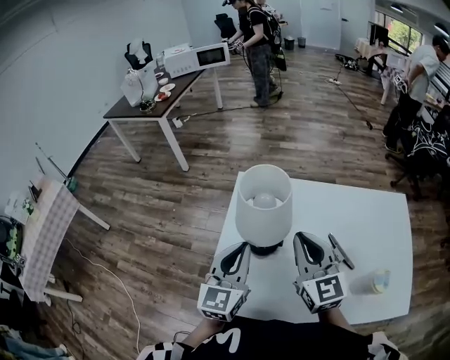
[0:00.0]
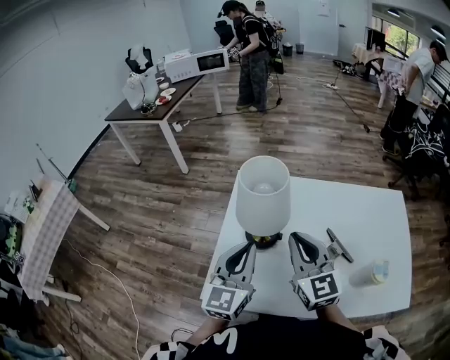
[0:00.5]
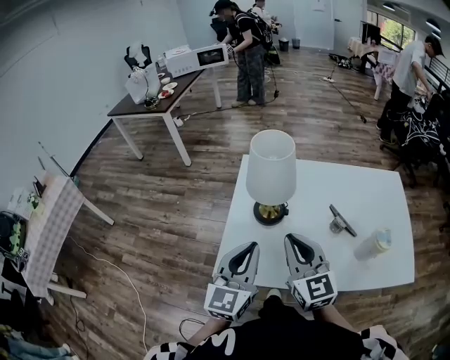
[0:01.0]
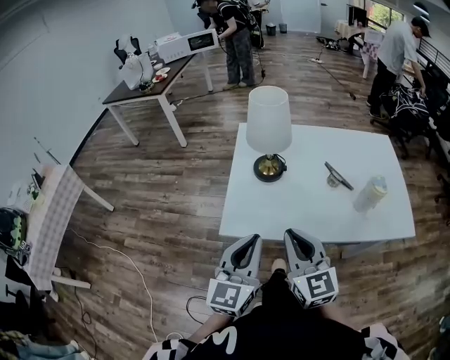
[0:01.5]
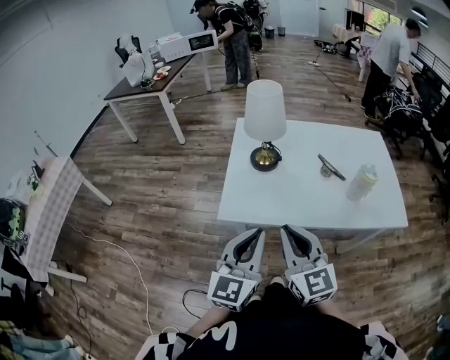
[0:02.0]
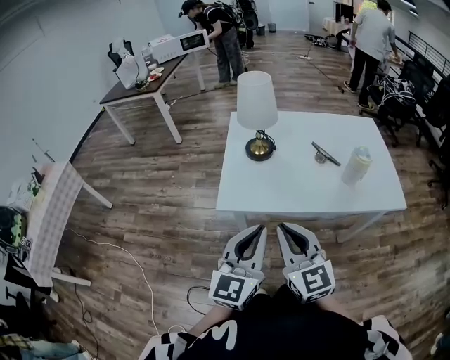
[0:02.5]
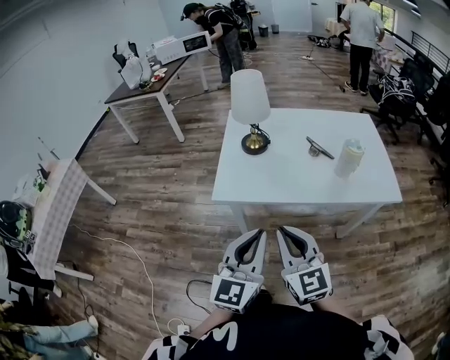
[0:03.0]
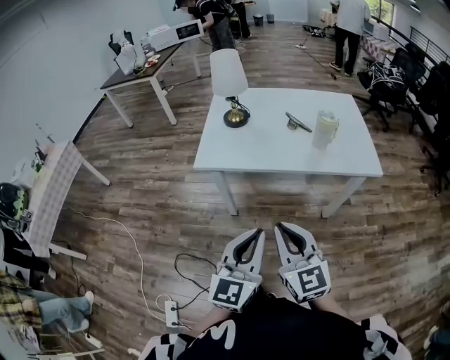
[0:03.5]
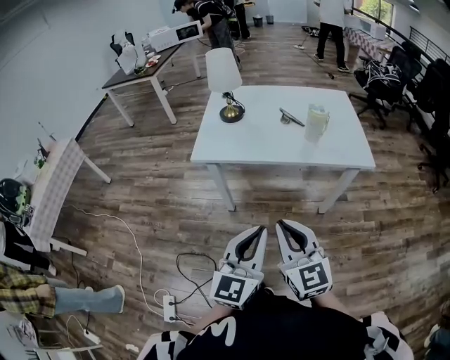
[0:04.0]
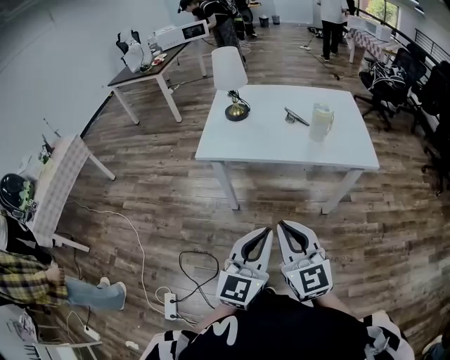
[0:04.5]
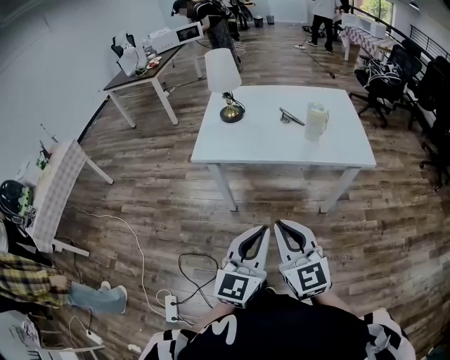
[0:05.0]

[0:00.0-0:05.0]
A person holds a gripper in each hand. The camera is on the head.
0:00.0 to 0:02.5: The two grippers go approximately 35 cm backward.
0:02.5 to 0:05.0: Both grippers travel together backward and to the right, approximately 25 cm.

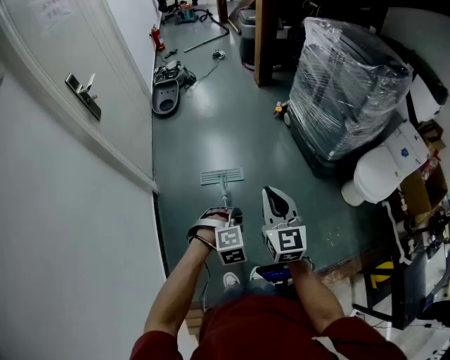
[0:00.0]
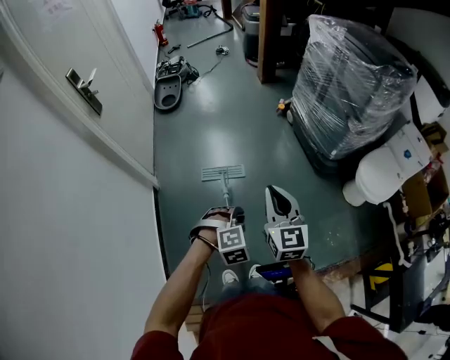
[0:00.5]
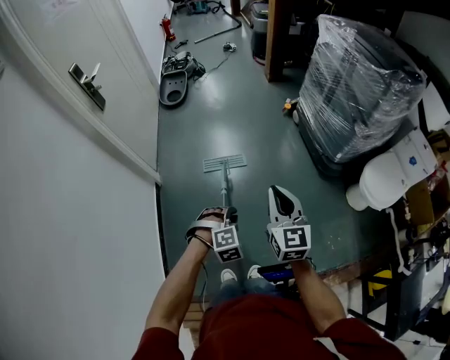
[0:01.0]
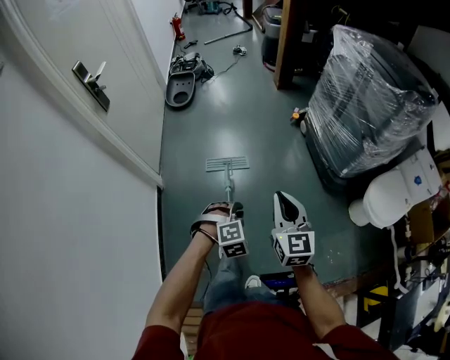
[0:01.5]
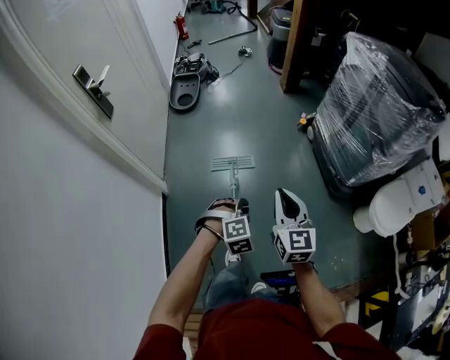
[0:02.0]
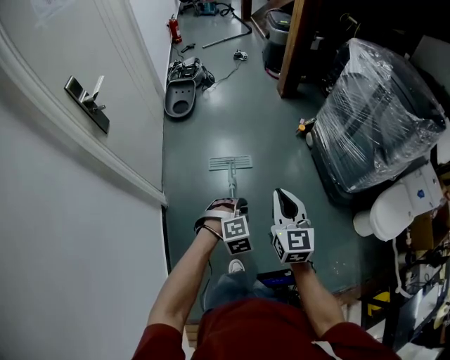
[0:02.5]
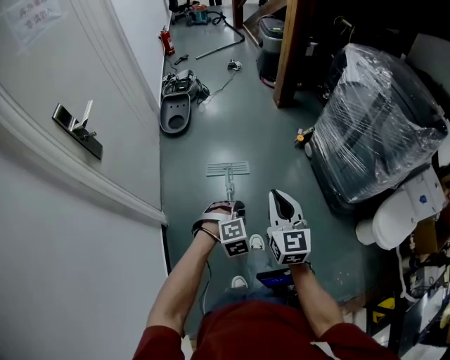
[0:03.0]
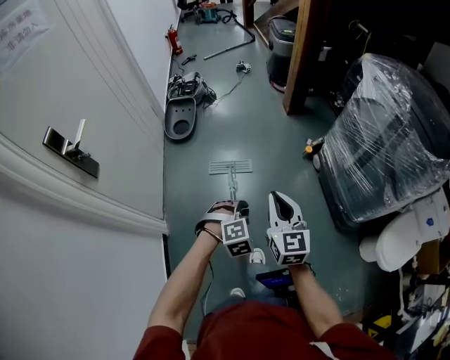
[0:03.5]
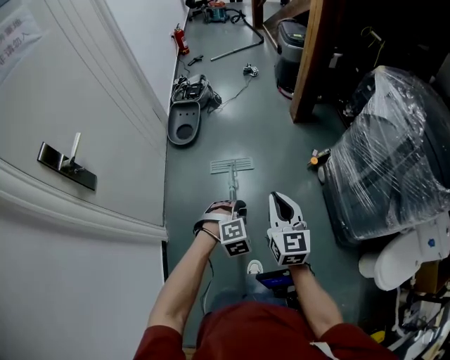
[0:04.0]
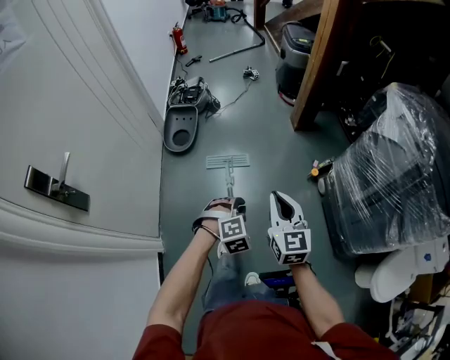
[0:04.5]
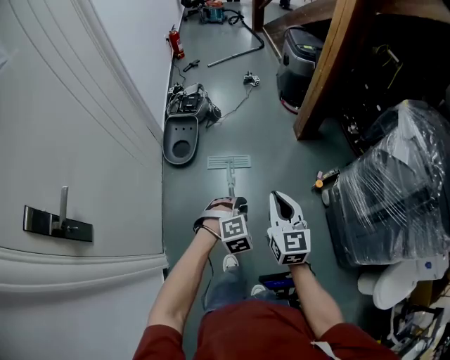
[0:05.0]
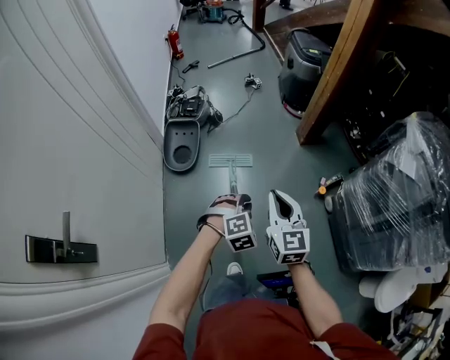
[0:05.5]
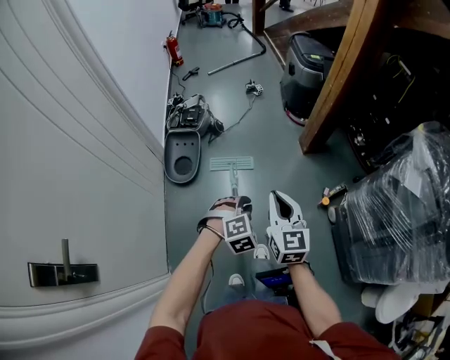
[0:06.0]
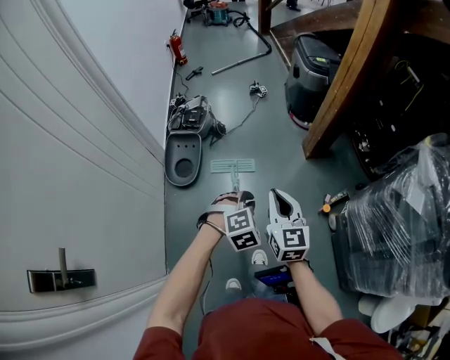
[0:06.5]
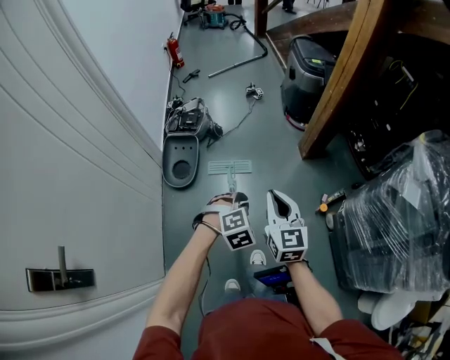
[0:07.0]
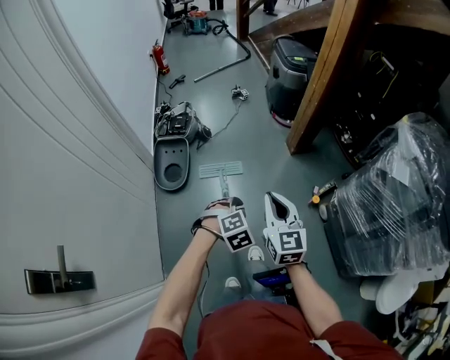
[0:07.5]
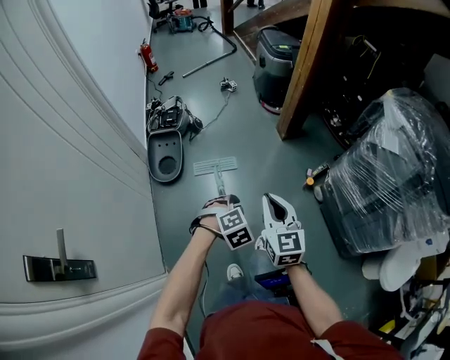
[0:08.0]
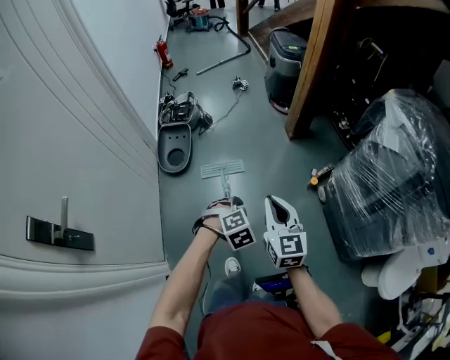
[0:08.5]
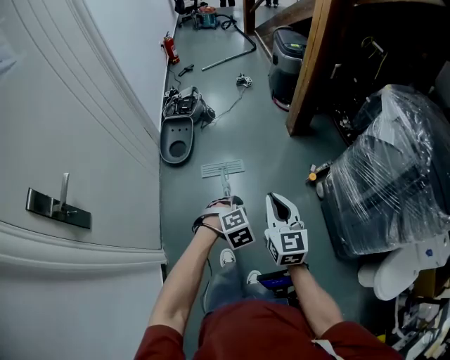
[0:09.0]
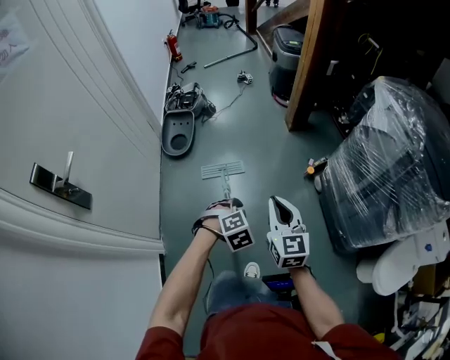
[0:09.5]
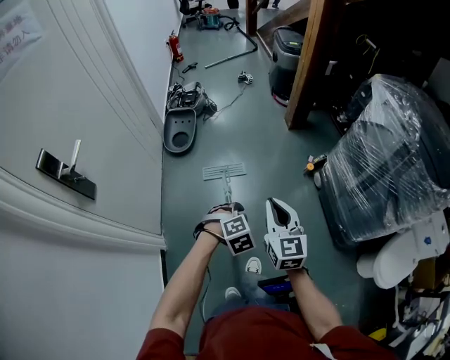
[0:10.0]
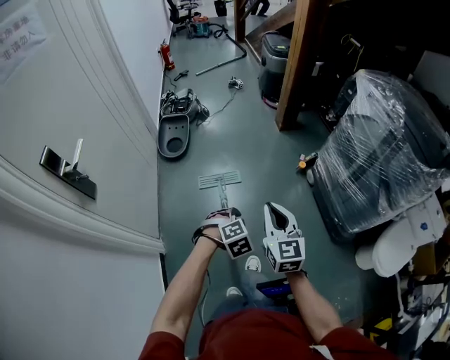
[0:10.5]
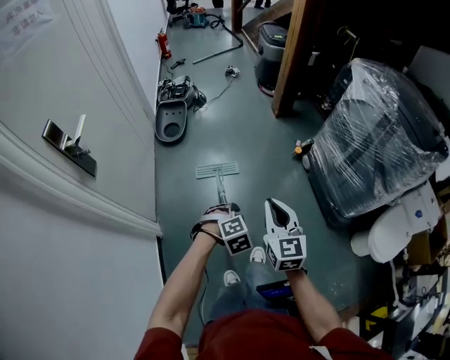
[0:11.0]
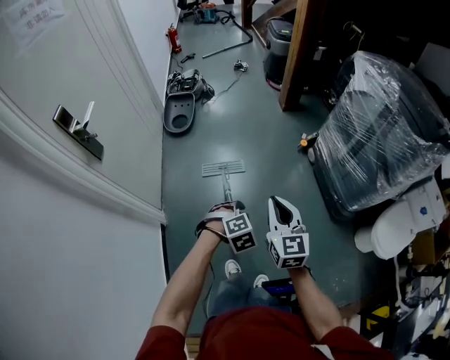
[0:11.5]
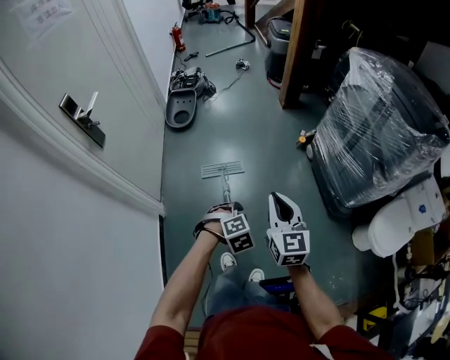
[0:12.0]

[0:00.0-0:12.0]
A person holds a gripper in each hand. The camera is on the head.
0:00.0 to 0:02.0: Both grippers travel together forward, approximately 20 cm.
0:02.0 to 0:04.0: The two grippers travel together, forward, approximately 40 cm.
0:04.0 to 0:06.0: The two grippers travel together, forward, roughly 40 cm.
0:06.0 to 0:08.0: The grippers both shift backward by approximately 10 cm.
0:08.0 to 0:10.0: Both grippers move backward, about 30 cm.
0:10.0 to 0:12.0: Both grippers move backward, approximately 30 cm.

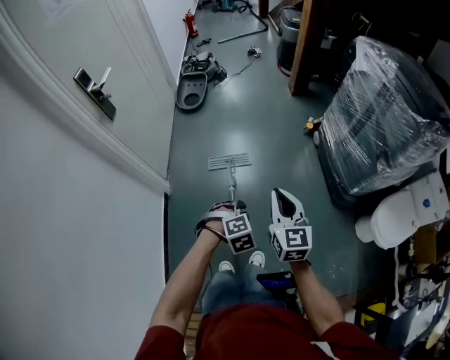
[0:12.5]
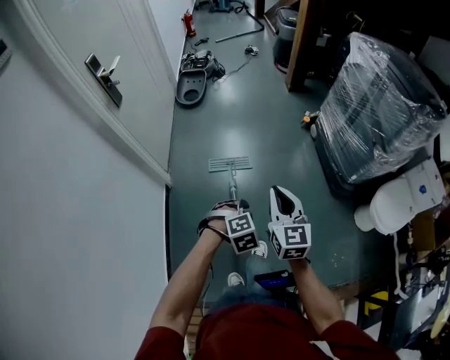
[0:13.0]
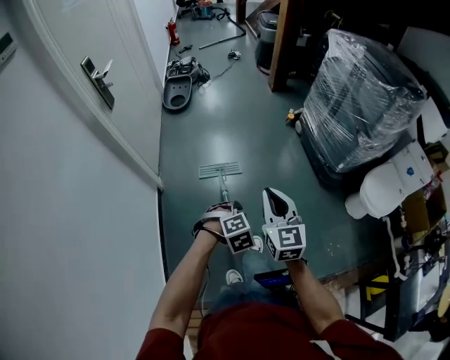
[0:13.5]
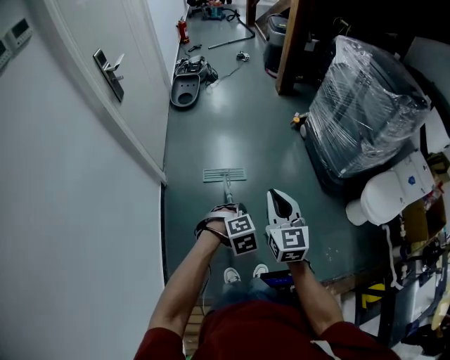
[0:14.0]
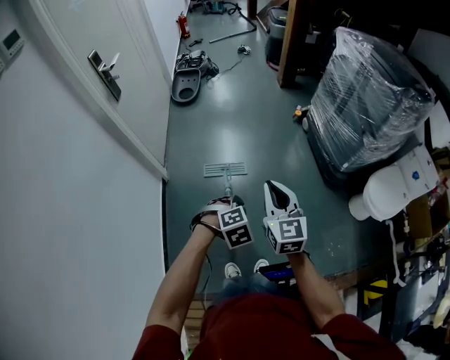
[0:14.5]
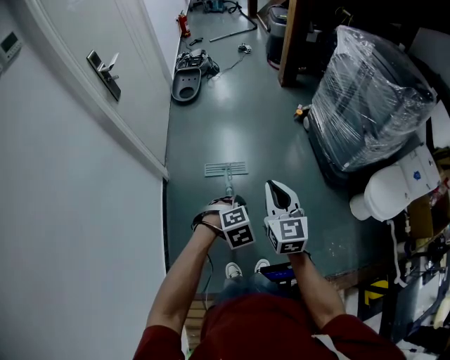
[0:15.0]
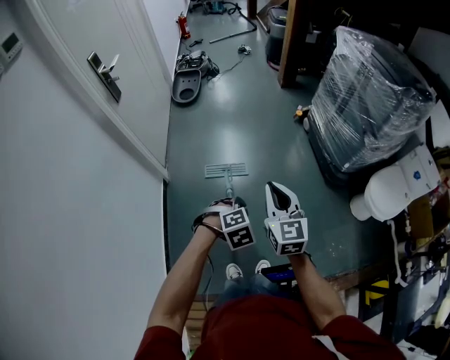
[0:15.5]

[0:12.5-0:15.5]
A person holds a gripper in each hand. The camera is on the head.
0:12.5 to 0:14.0: The two grippers go some 20 cm backward.
0:14.0 to 0:15.5: There are only small adjustments of the grippers.

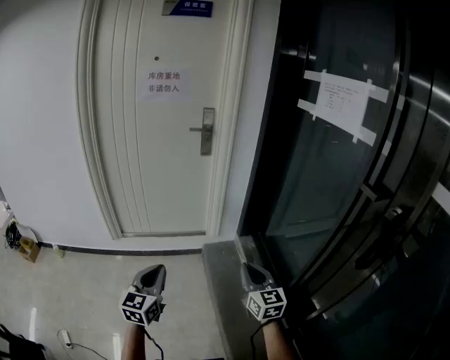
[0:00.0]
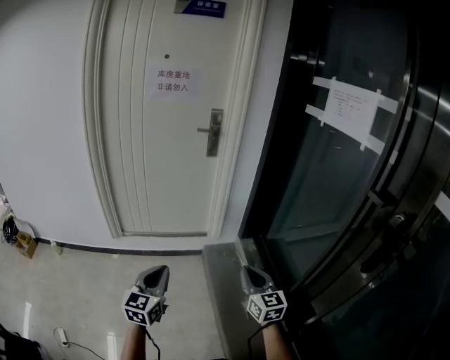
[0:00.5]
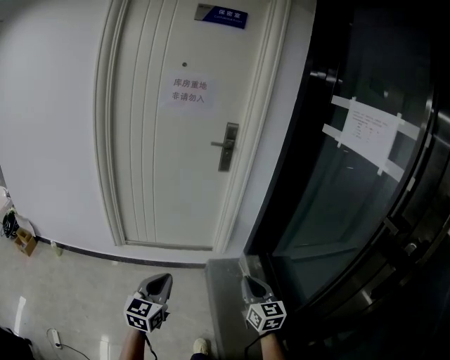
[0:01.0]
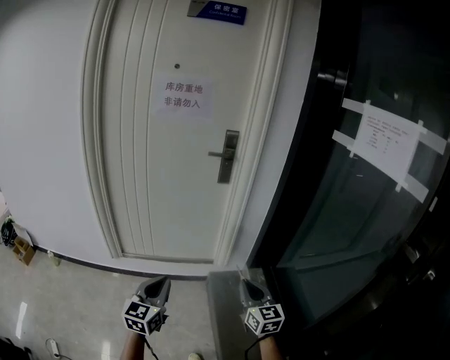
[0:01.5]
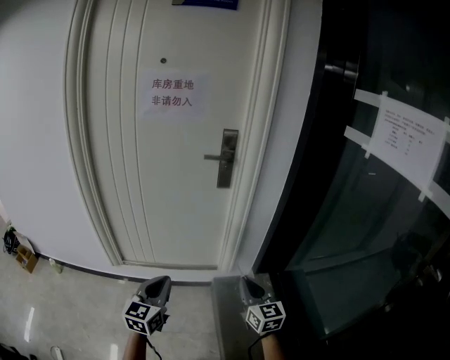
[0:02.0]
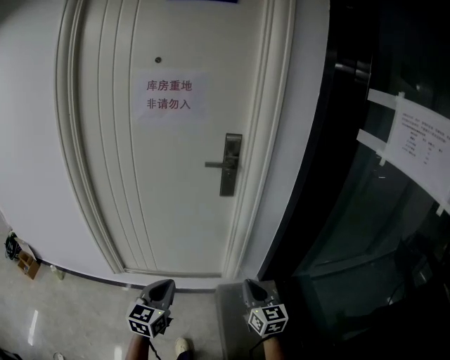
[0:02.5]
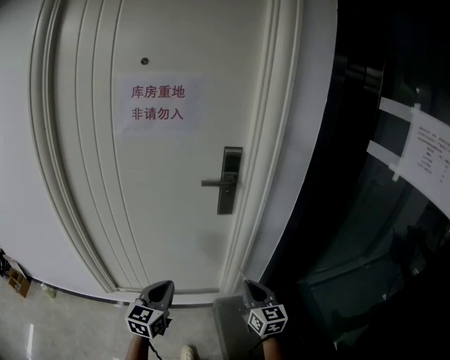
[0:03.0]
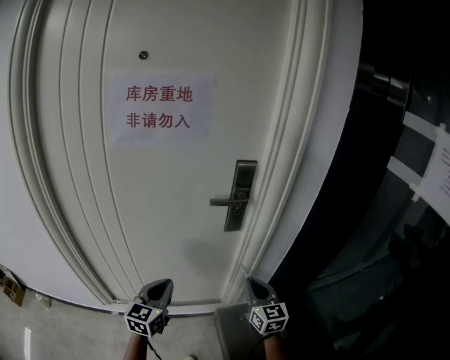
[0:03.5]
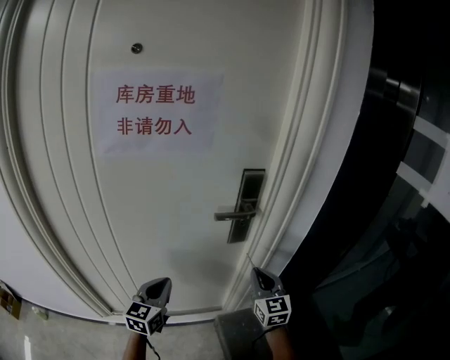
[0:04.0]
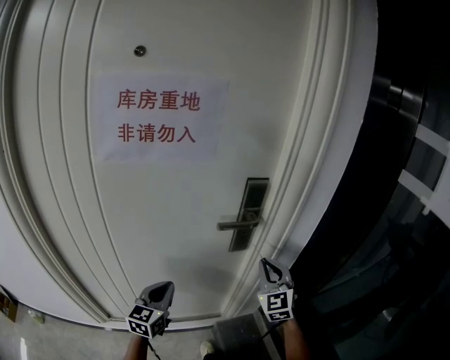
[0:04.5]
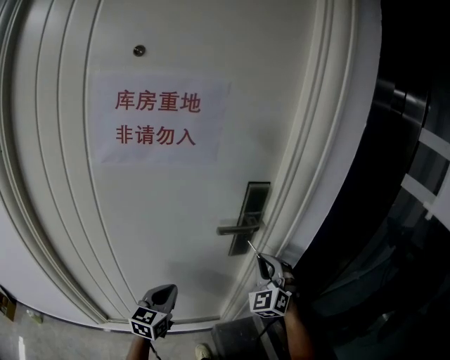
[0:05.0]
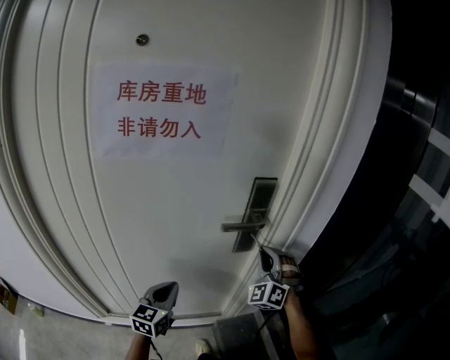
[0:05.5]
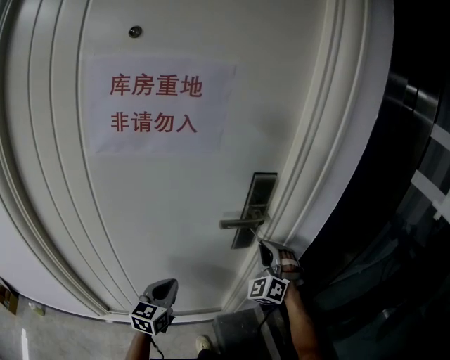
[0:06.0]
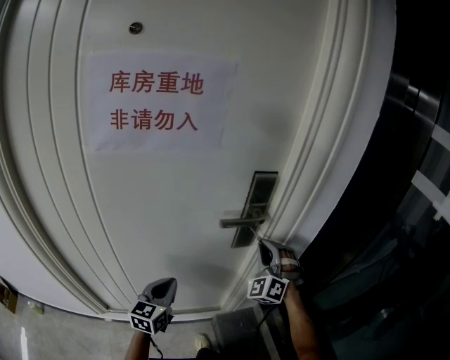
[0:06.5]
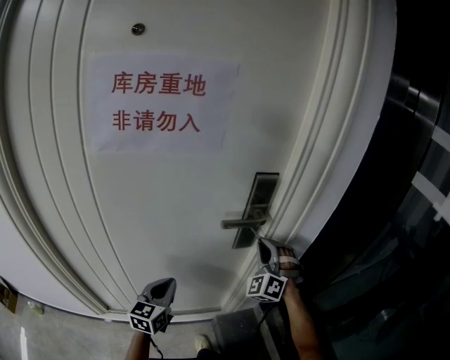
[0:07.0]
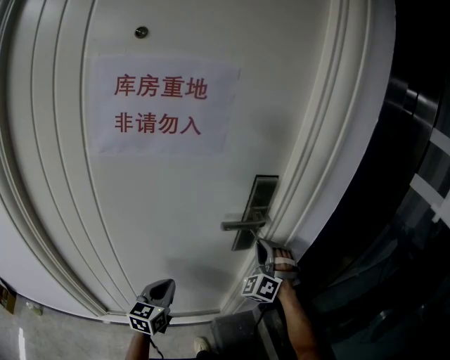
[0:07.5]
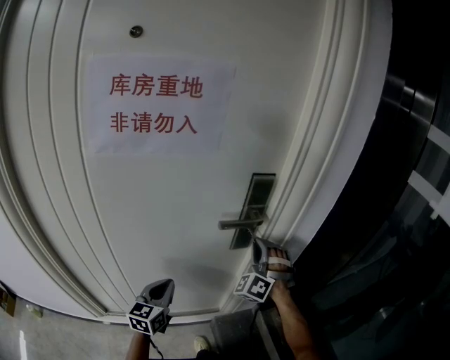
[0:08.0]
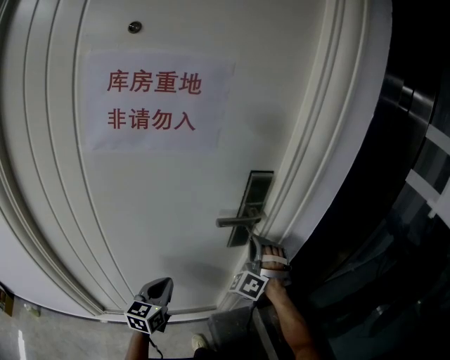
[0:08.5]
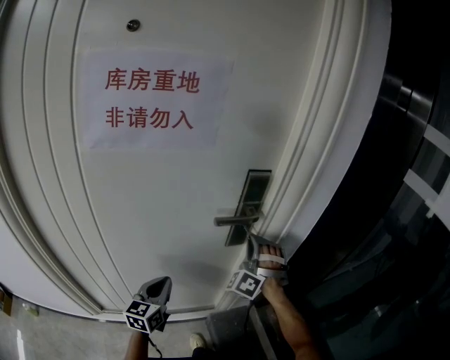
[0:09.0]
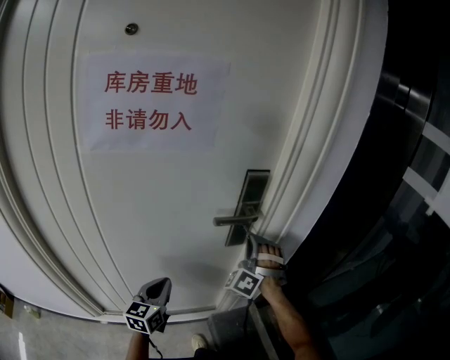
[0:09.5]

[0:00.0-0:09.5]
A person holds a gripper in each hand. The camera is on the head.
0:00.0 to 0:02.0: The two grippers go some 30 cm forward.
0:02.0 to 0:04.0: Both grippers move forward, approximately 40 cm.
0:04.0 to 0:05.5: The right gripper moves forward, roughly 10 cm, and rotates around the line of its fingers by some 60 degrees, counterclockwise from behind.
0:05.5 to 0:07.5: The grippers move only a little.
0:07.5 to 0:09.5: The grippers stay close to where they were, moving slightly.
